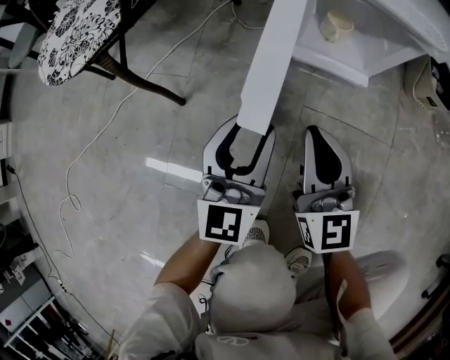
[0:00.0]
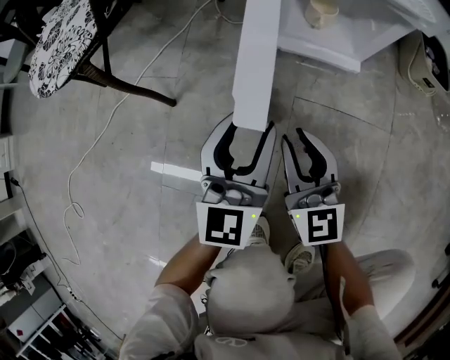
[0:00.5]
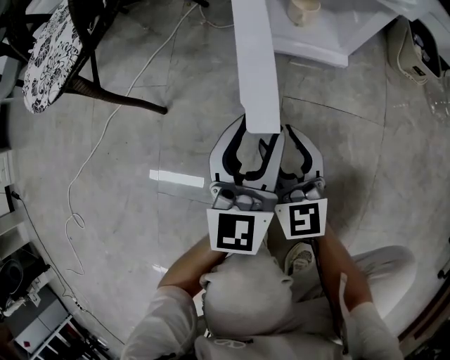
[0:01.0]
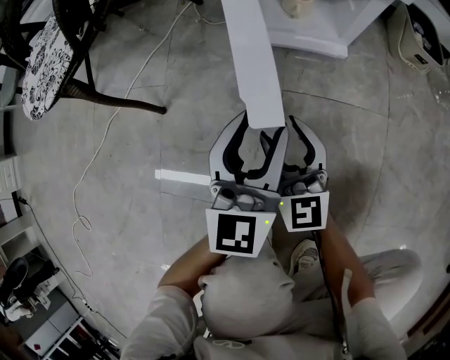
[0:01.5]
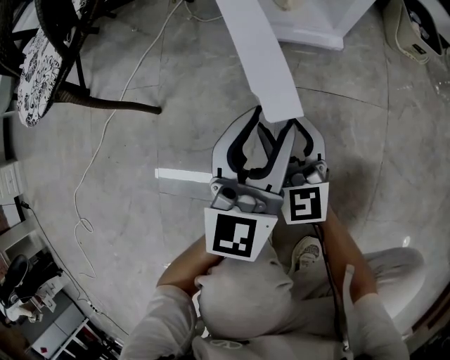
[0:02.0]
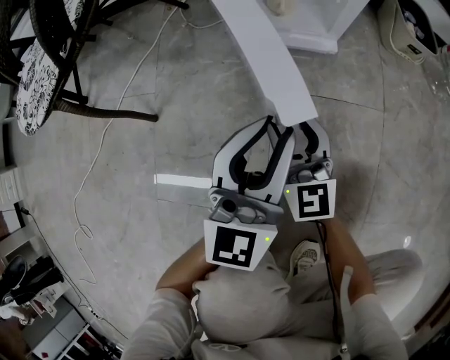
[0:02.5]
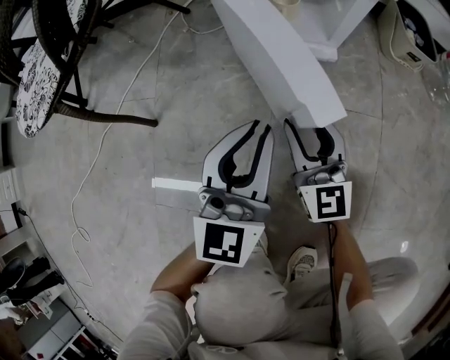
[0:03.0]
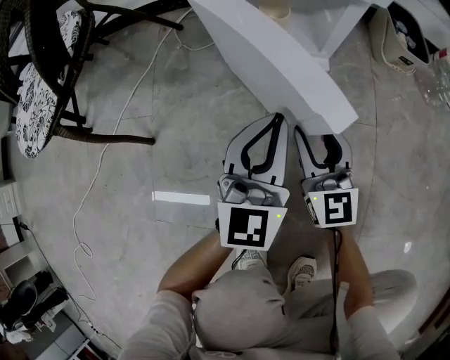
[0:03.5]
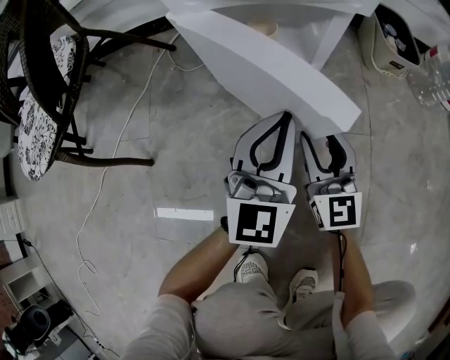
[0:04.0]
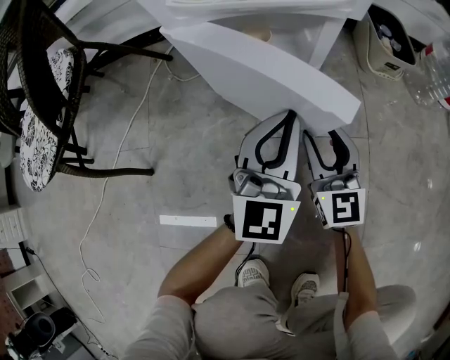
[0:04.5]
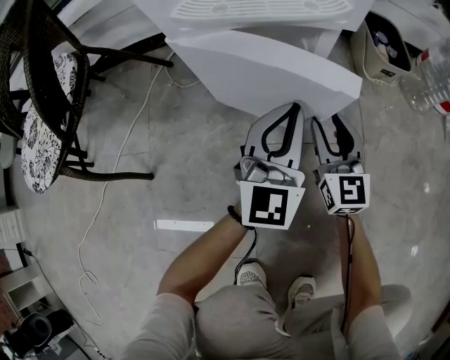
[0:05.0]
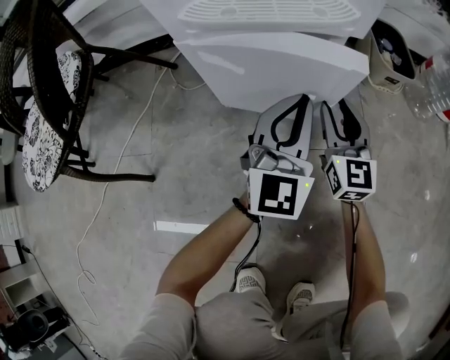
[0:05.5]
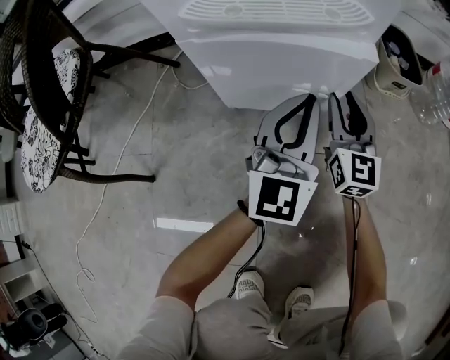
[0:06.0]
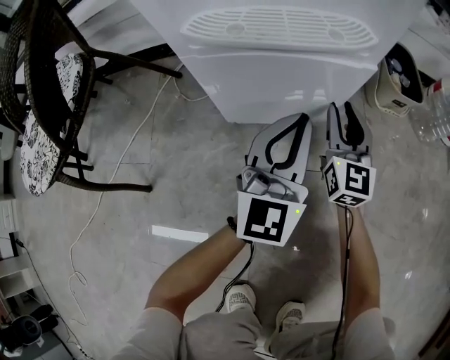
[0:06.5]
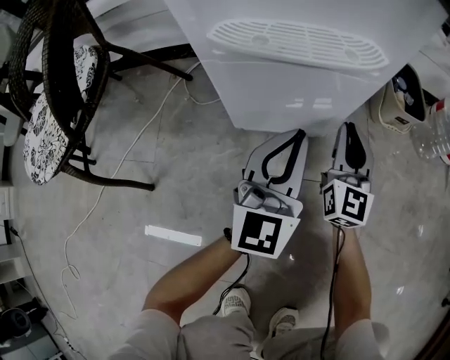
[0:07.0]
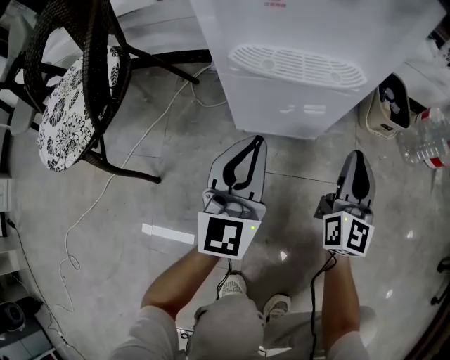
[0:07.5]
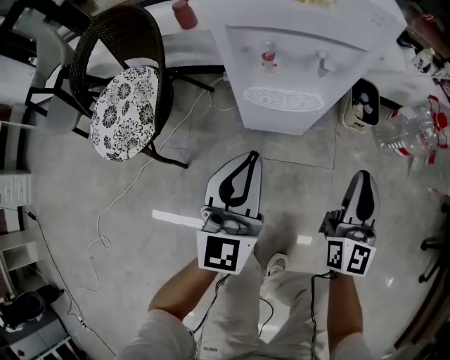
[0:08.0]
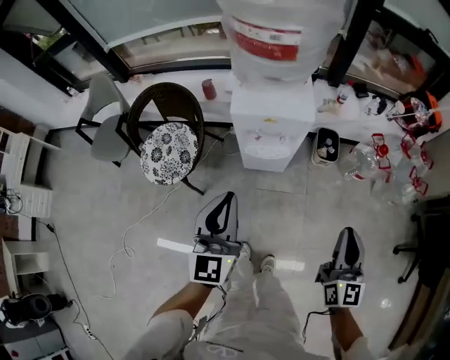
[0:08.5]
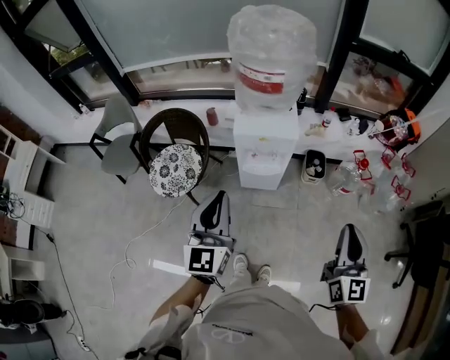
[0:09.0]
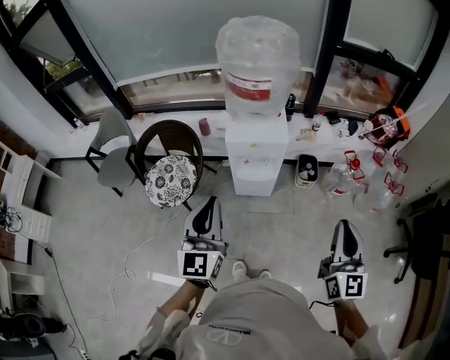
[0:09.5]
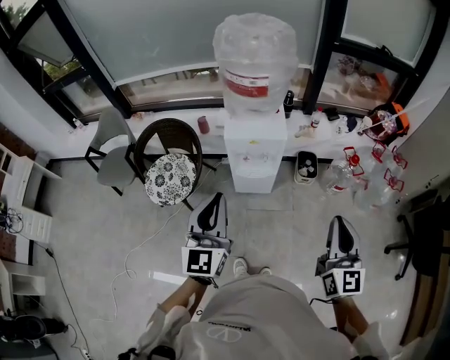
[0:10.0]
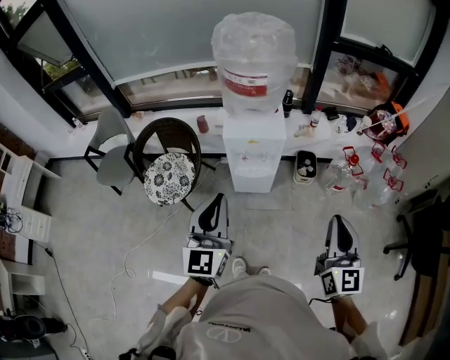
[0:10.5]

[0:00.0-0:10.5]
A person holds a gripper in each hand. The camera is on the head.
0:00.0 to 0:02.0: The left gripper is displaced to the right by some 10 cm; the right gripper heads downward, covering roughly 10 cm, and opens its fingers.
0:02.0 to 0:04.0: The right gripper goes about 15 cm to the right and forward; the left gripper travels forward and to the right by some 10 cm, and closes up.
0:04.0 to 0:06.5: The right gripper moves forward, approximately 15 cm; the left gripper goes about 10 cm forward.
0:06.5 to 0:08.5: The left gripper shifts some 70 cm upward; the right gripper shifts approximately 80 cm upward and backward, and closes up.
0:08.5 to 0:10.5: Both grippers move upward and backward, some 15 cm.

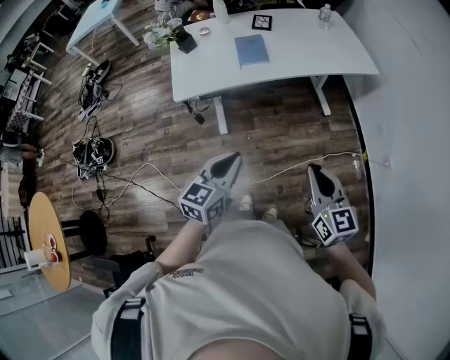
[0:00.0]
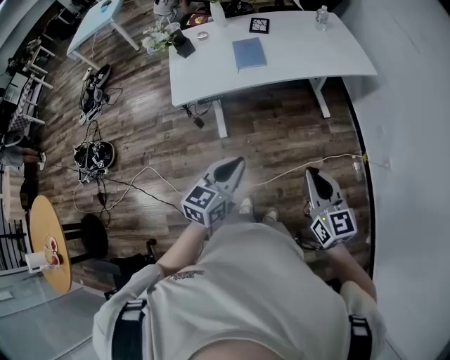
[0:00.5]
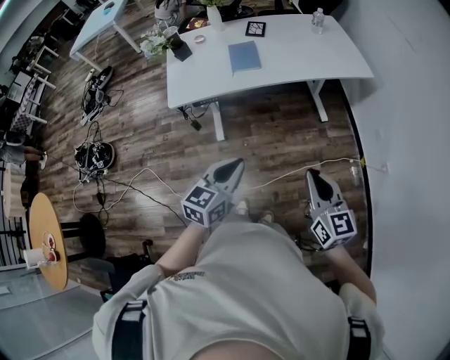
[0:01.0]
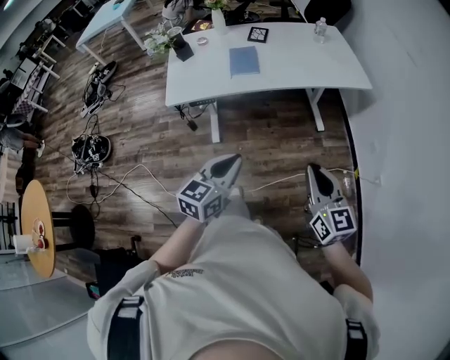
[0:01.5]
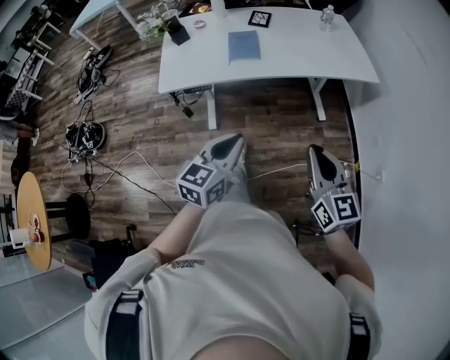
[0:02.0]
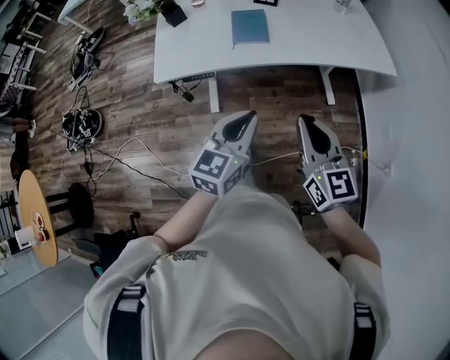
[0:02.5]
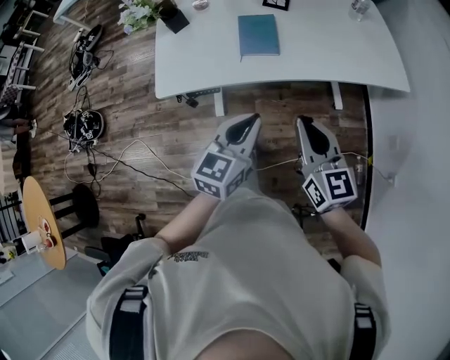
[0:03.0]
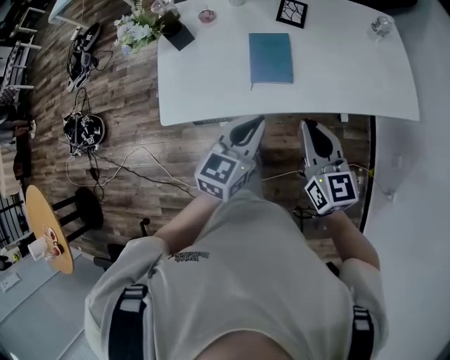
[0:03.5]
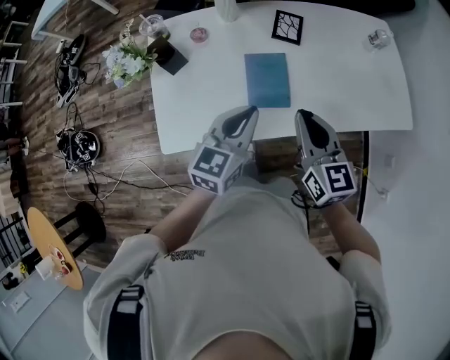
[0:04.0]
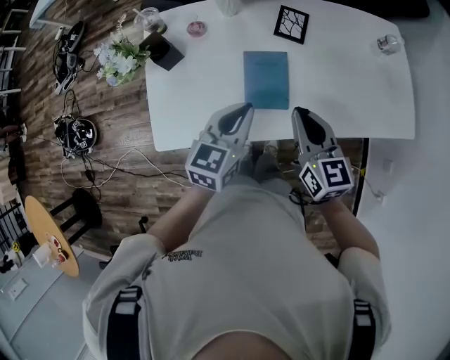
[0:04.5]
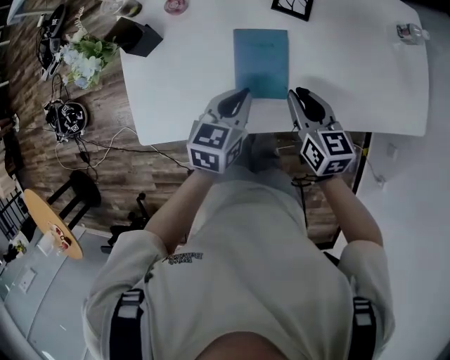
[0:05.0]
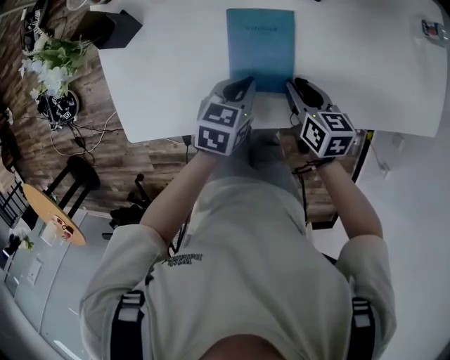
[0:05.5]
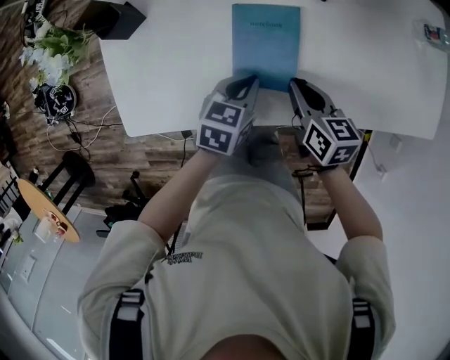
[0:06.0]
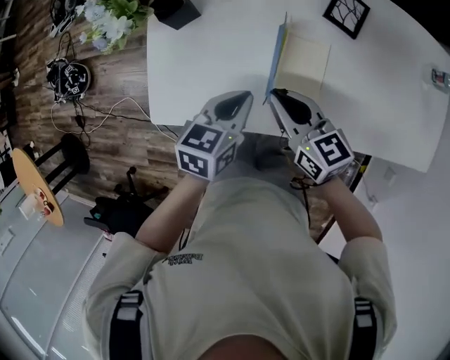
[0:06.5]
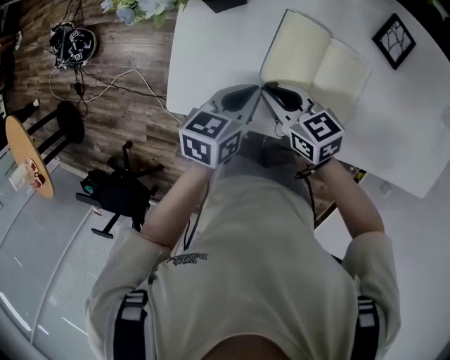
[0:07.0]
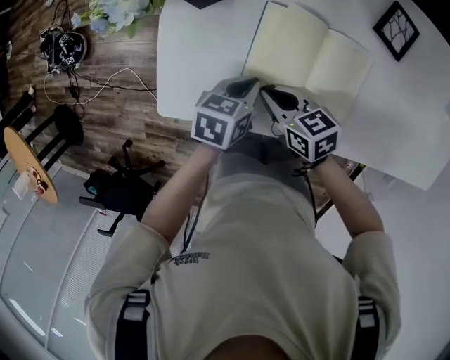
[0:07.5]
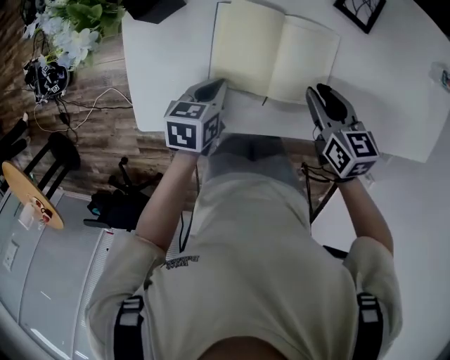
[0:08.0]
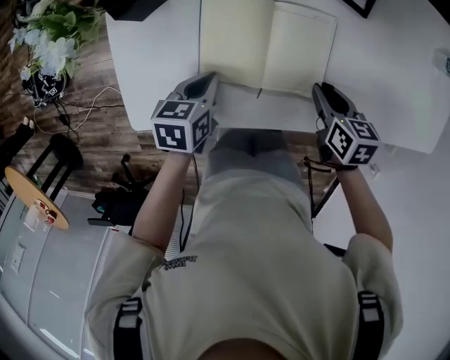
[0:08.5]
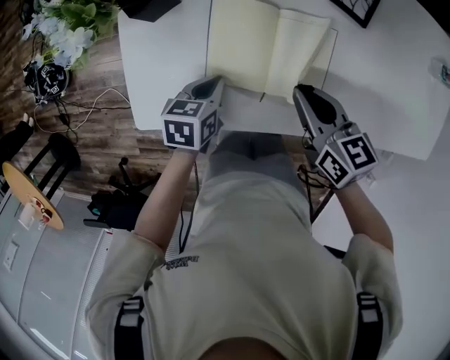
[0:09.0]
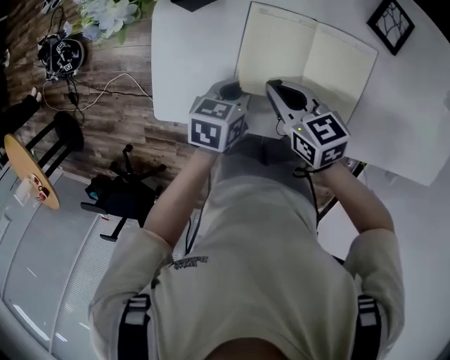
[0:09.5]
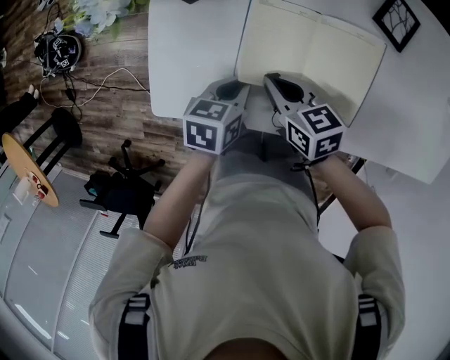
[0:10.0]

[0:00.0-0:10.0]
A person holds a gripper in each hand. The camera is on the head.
0:00.0 to 0:02.0: The left gripper moves to the right and forward, roughly 10 cm, while the right gripper is displaced forward and to the right by roughly 10 cm.
0:02.0 to 0:04.0: The pair of grippers is taken forward, approximately 40 cm.
0:04.0 to 0:06.0: Both grippers move downward, about 25 cm. The left gripper turns by roughly 30 degrees. The right gripper turns by approximately 30 degrees, and opens and closes again.
0:06.0 to 0:08.0: The left gripper travels upward and back again, approximately 10 cm each way; the right gripper reaches approximately 10 cm upward, then returns, and opens its fingers.
0:08.0 to 0:10.0: The right gripper is displaced to the left by about 15 cm, and closes.

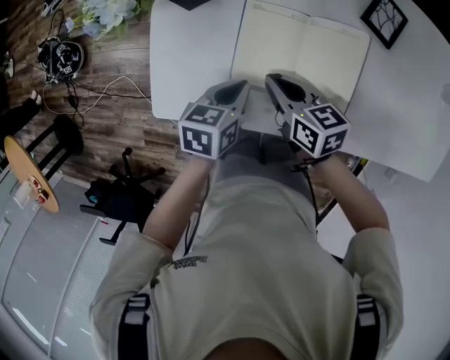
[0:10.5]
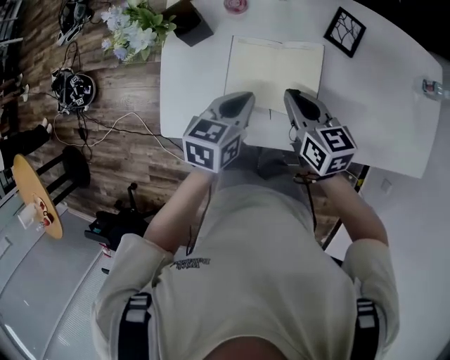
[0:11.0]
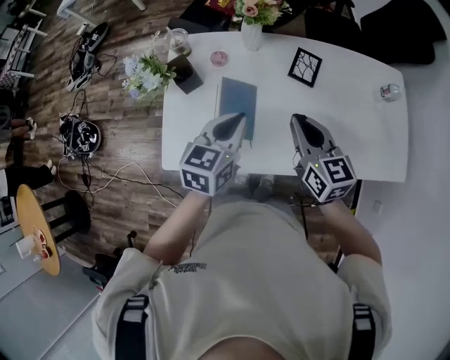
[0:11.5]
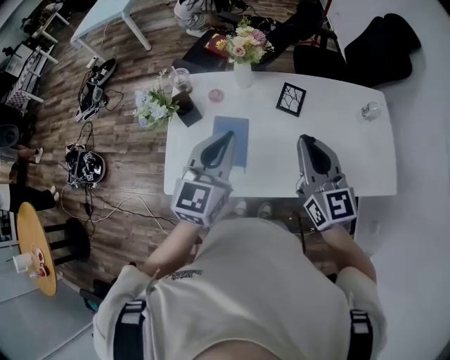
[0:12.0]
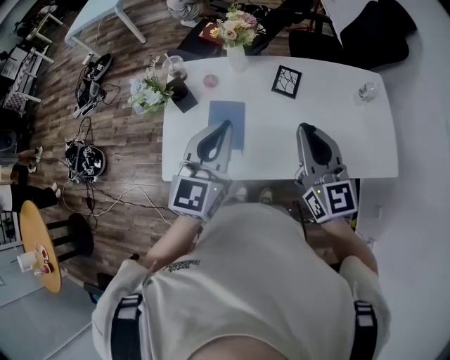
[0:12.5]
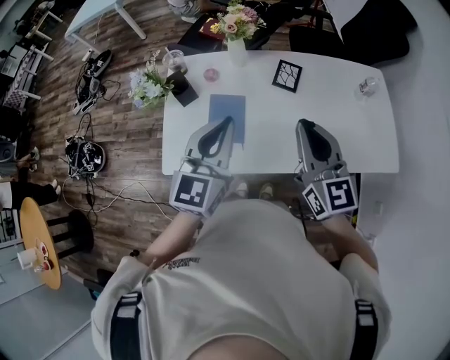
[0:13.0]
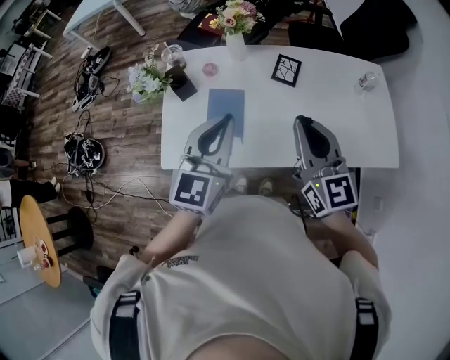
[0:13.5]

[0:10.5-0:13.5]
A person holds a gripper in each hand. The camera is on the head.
0:10.5 to 0:12.0: The right gripper travels upward and to the right by roughly 40 cm, and turns by approximately 60 degrees; the left gripper heads upward, covering approximately 35 cm, and points its fingers some 40 degrees further upward.
0:12.0 to 0:13.5: The two grippers go about 5 cm backward.

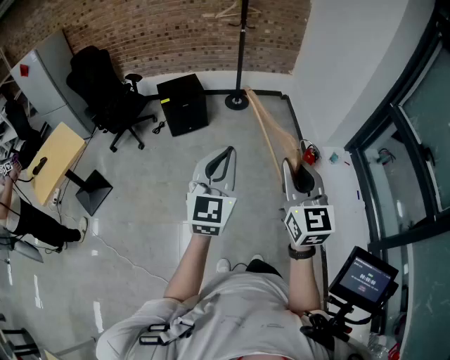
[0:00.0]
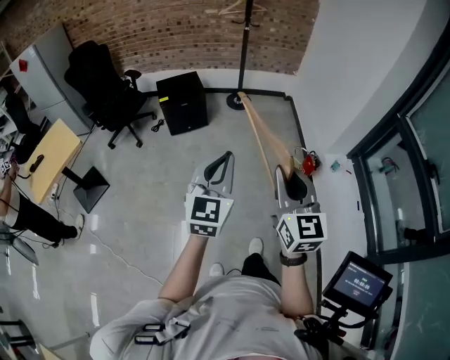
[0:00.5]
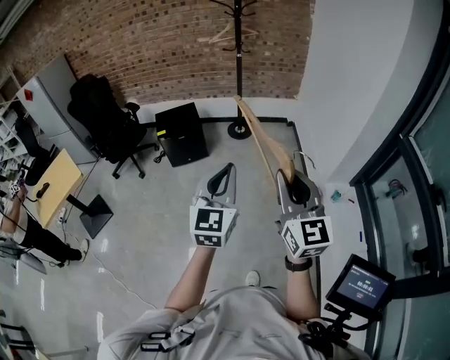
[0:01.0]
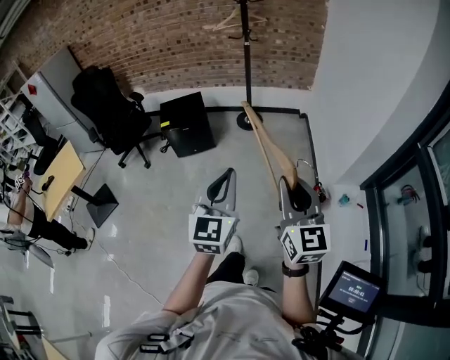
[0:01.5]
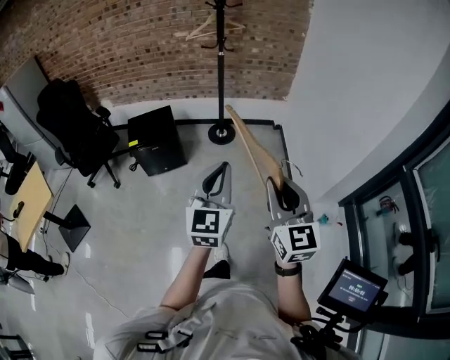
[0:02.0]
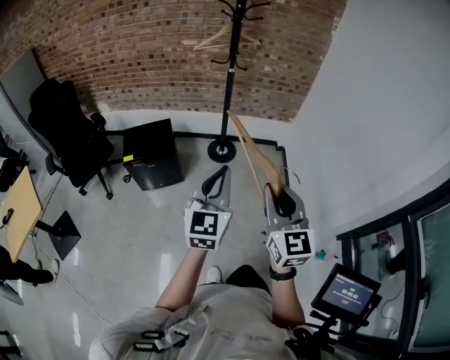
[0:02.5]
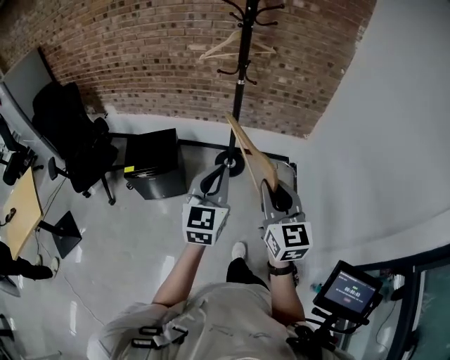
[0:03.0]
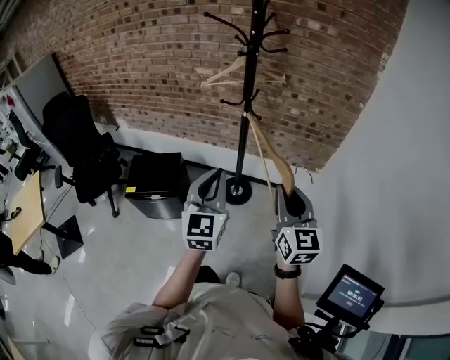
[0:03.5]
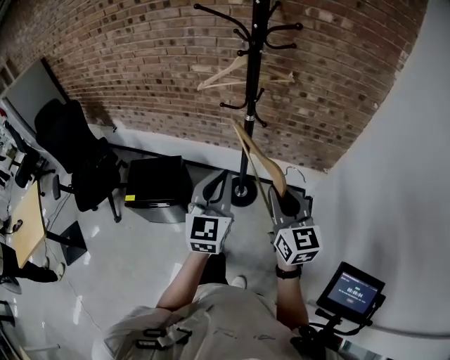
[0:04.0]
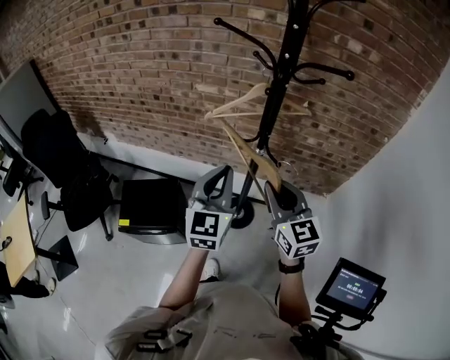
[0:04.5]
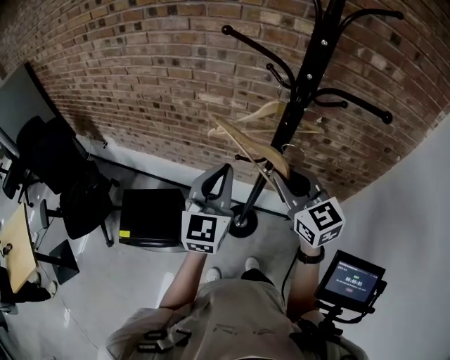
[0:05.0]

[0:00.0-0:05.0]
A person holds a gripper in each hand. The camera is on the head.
0:00.0 to 0:02.5: The two grippers travel together, forward, about 60 cm.
0:02.5 to 0:05.0: The pair of grippers is taken forward, approximately 70 cm. The right gripper swivels about 30 degrees.
